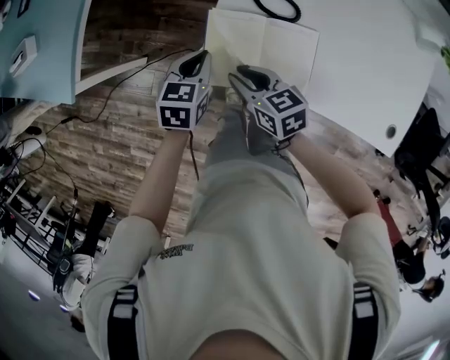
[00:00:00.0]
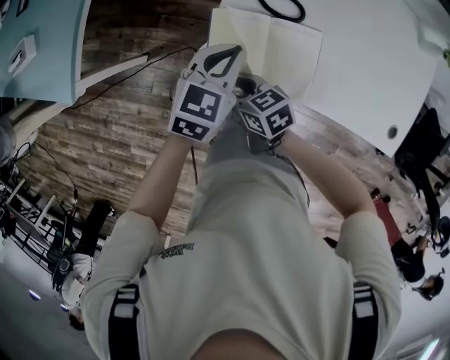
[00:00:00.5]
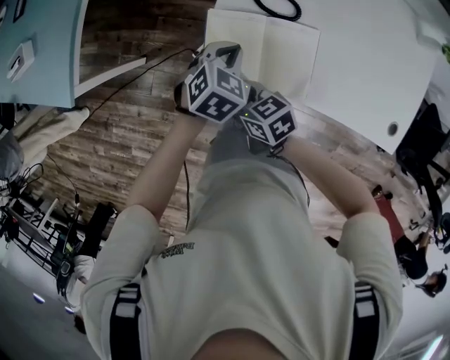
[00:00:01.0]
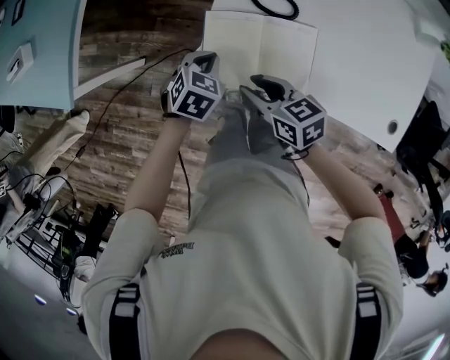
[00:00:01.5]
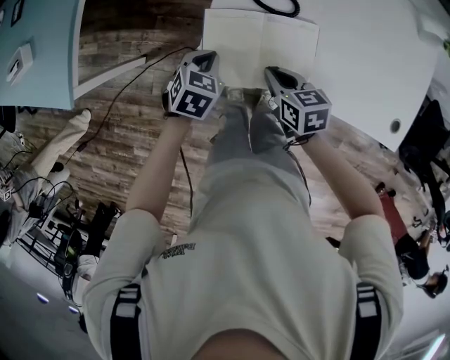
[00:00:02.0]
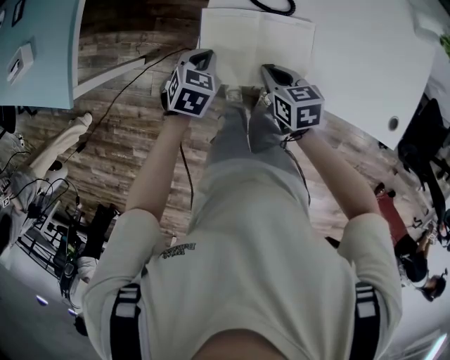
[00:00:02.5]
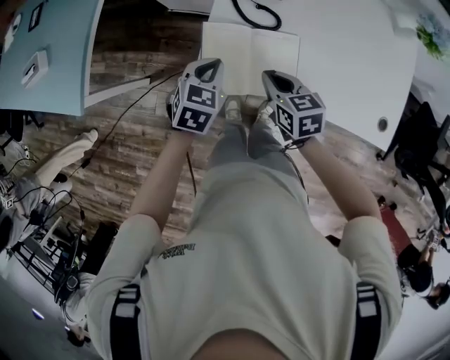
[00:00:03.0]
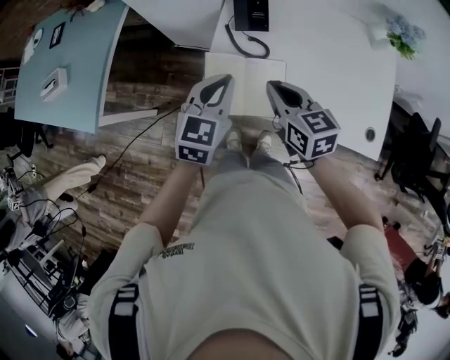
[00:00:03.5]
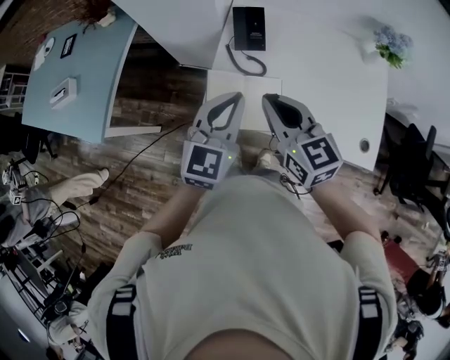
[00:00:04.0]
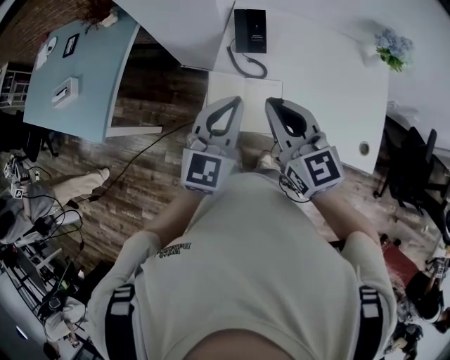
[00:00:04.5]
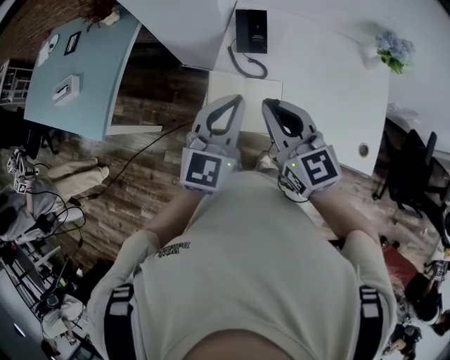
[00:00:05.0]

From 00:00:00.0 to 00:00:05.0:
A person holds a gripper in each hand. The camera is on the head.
From 00:00:00.0 to 00:00:02.5: The left gripper moves downward, roughly 5 cm, and changes its angle by roughly 20 degrees. The right gripper travels to the right by some 10 cm, and closes its fingers.
From 00:00:02.5 to 00:00:05.0: Both grippers travel together upward, roughly 35 cm. The right gripper tilts its fingers roughly 40 degrees upward. The left gripper tips its fingers upward by approximately 50 degrees.

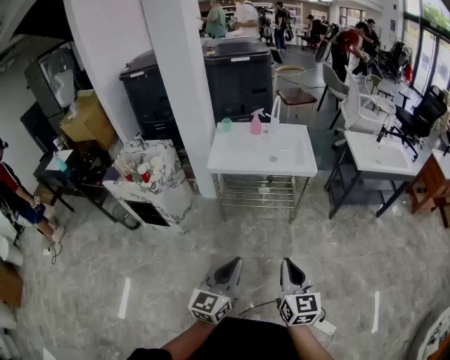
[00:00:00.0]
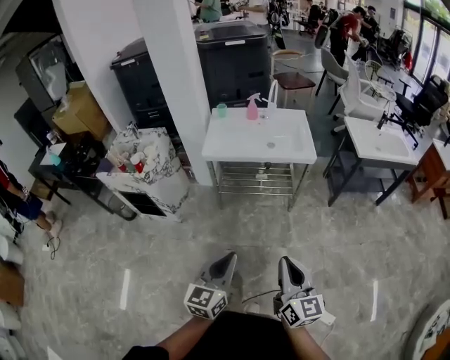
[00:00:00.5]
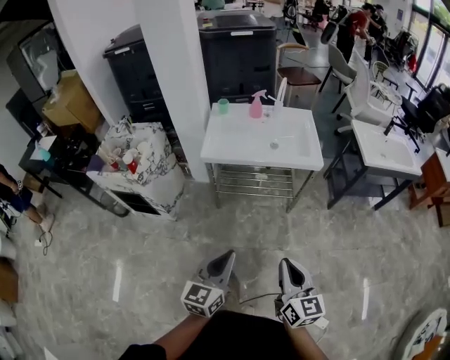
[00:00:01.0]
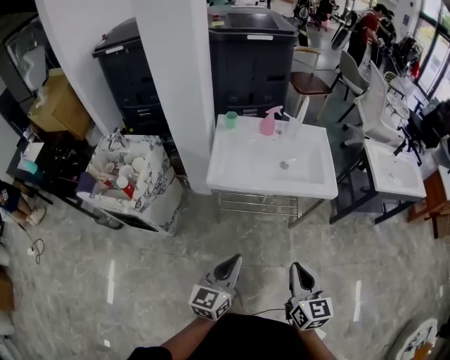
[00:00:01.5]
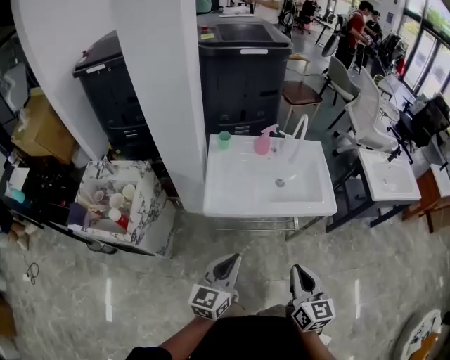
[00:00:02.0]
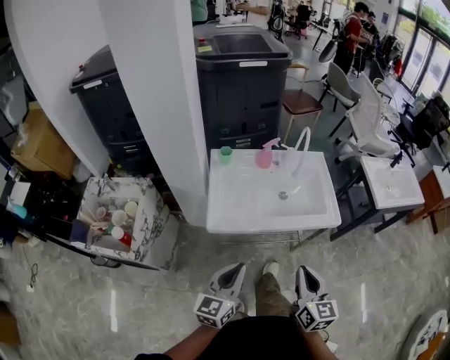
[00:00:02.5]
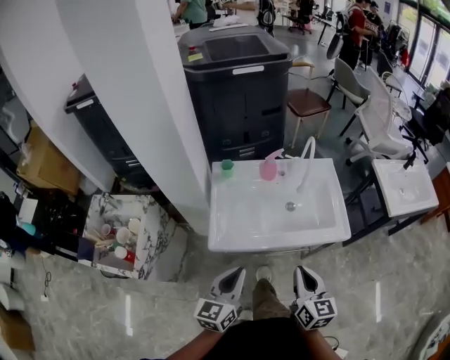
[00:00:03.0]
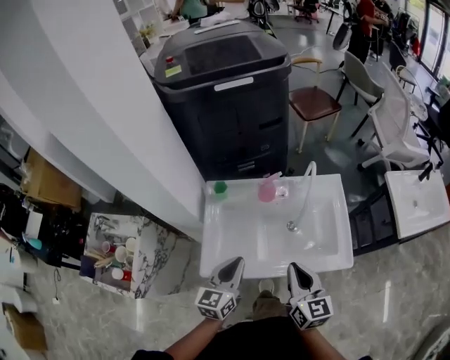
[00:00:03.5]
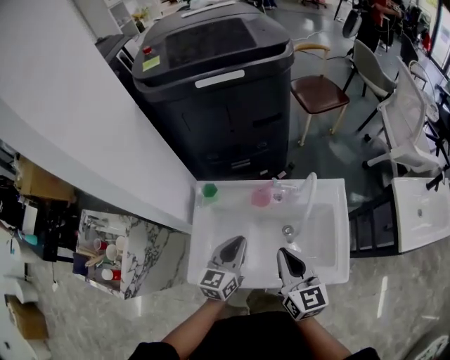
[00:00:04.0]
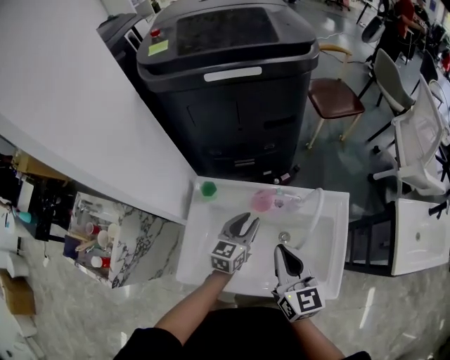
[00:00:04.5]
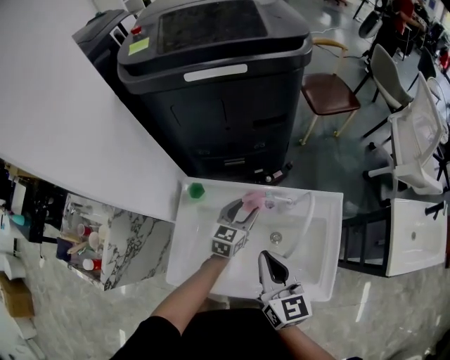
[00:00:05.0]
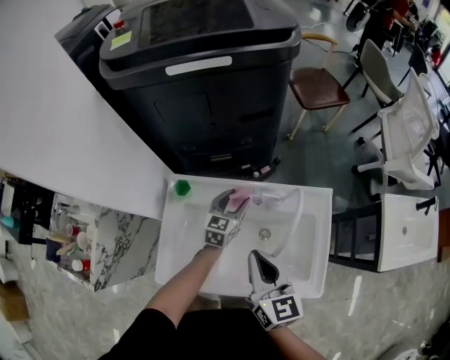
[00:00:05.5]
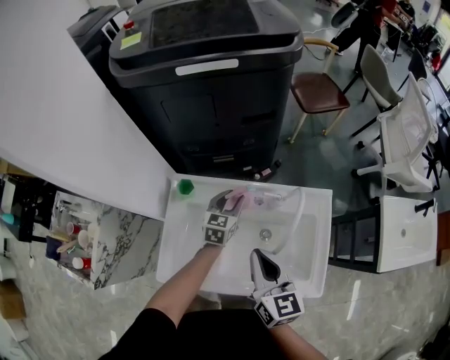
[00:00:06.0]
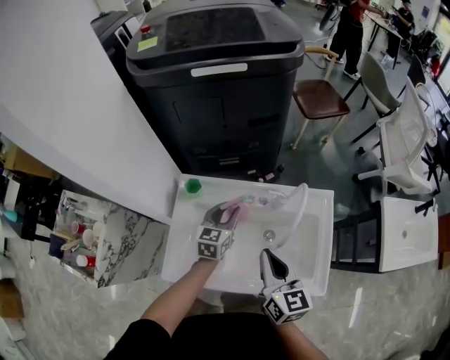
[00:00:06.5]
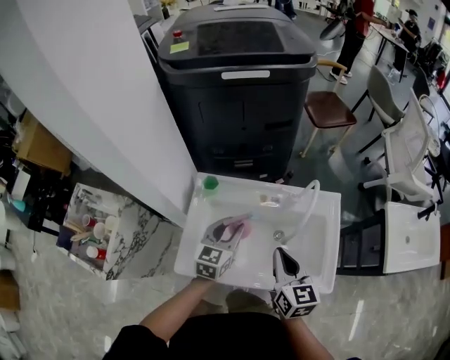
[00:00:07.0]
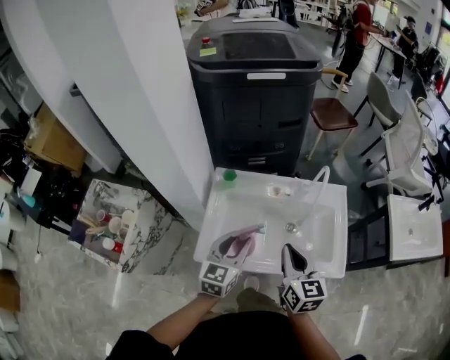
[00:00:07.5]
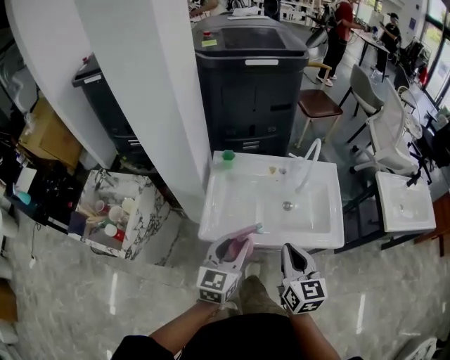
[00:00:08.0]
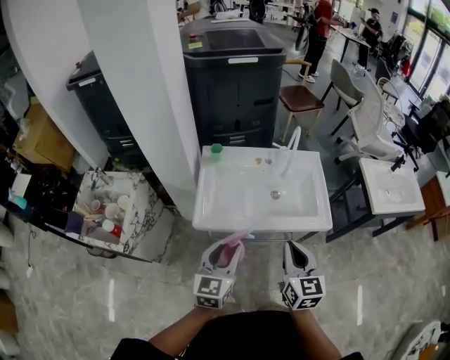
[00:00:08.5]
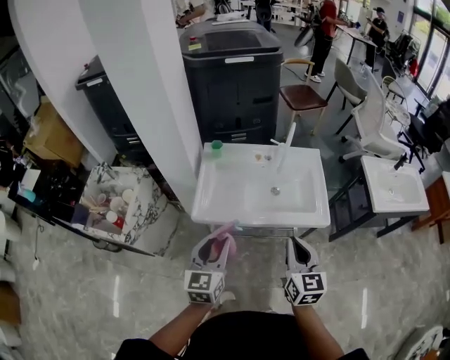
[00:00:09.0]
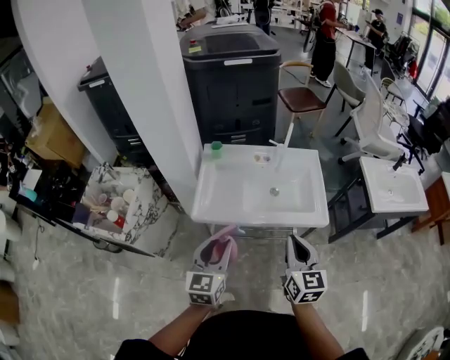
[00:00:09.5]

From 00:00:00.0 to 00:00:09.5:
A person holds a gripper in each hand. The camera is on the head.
From 00:00:00.0 to 00:00:02.0: Both grippers are carried forward and to the left, some 40 cm.
From 00:00:02.0 to 00:00:04.0: Both grippers are carried forward, about 50 cm.
From 00:00:04.0 to 00:00:05.5: The right gripper shifts some 5 cm forward; the left gripper is displaced forward and downward by some 25 cm, and opens.
From 00:00:05.5 to 00:00:07.5: The left gripper is displaced backward, upward and to the left by roughly 35 cm. Meanwhile the right gripper shifts approximately 15 cm backward.
From 00:00:07.5 to 00:00:09.5: Both grippers move backward, some 25 cm.

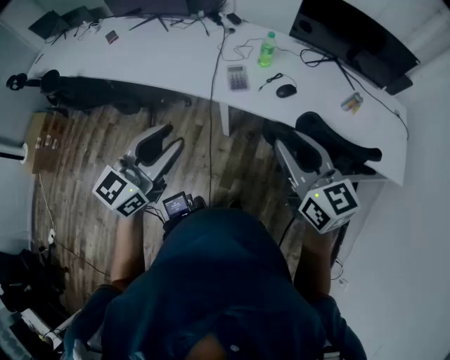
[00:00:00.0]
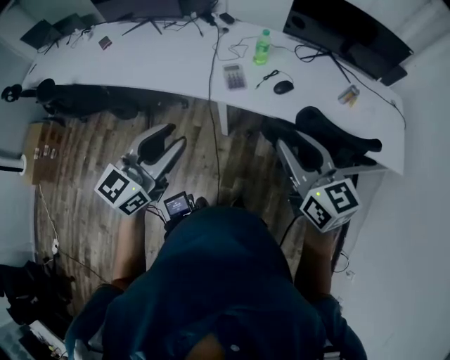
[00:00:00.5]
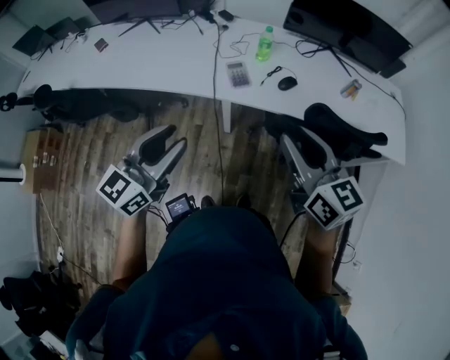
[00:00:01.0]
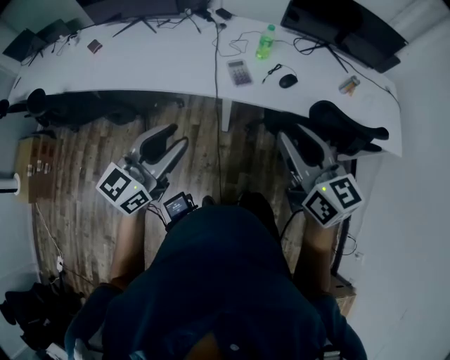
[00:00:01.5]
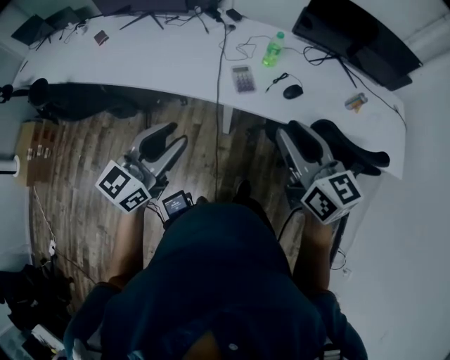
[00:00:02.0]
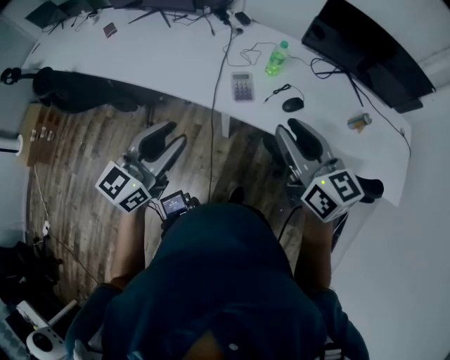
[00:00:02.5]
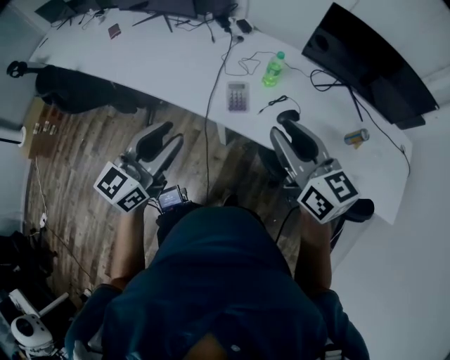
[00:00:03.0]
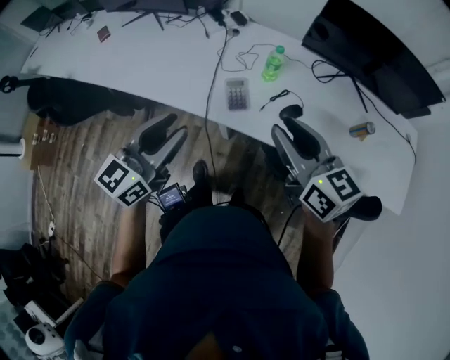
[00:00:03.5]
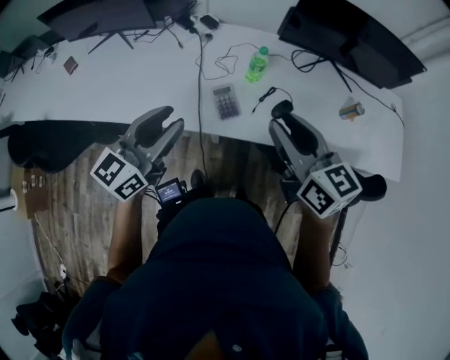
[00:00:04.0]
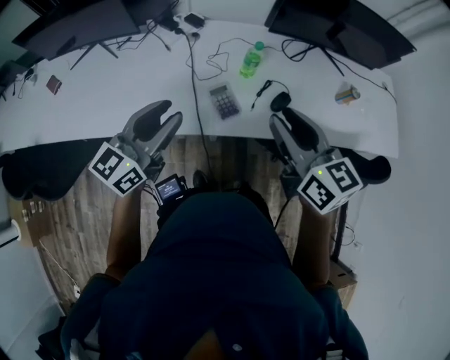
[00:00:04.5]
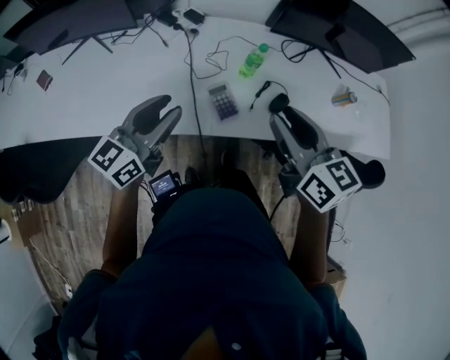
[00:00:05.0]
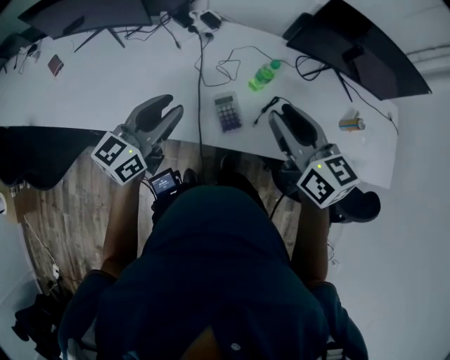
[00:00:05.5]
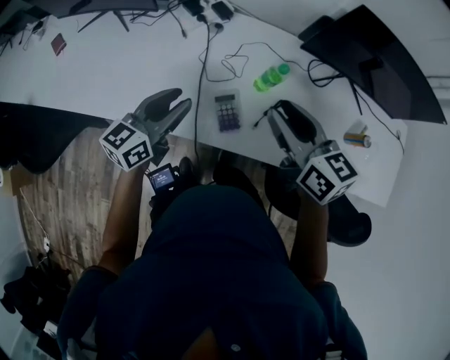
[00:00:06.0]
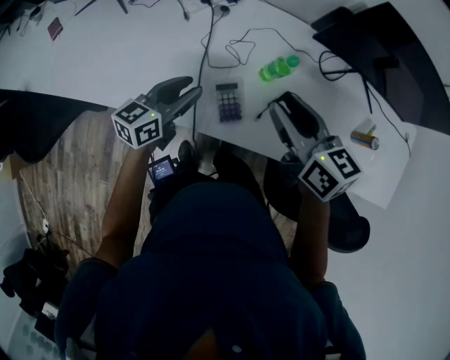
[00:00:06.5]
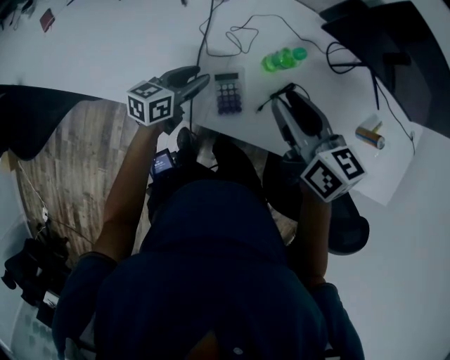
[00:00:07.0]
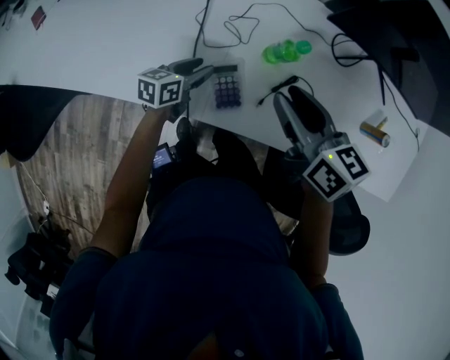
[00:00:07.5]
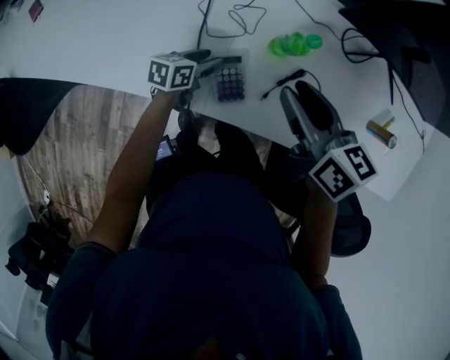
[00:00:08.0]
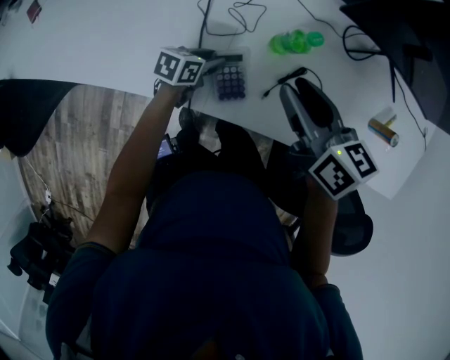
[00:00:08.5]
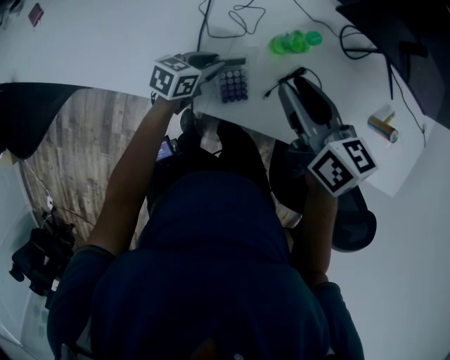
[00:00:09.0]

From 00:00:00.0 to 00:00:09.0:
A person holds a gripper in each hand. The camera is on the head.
From 00:00:00.0 to 00:00:02.0: The grippers both shift to the left by about 5 cm.
From 00:00:02.0 to 00:00:04.5: The two grippers go approximately 20 cm forward.
From 00:00:04.5 to 00:00:07.0: The left gripper heads downward and forward, covering roughly 30 cm, and turns by approximately 30 degrees. The right gripper is displaced forward and downward by about 20 cm, and changes its angle by roughly 20 degrees.
From 00:00:07.0 to 00:00:09.0: The left gripper heads downward, covering approximately 10 cm.

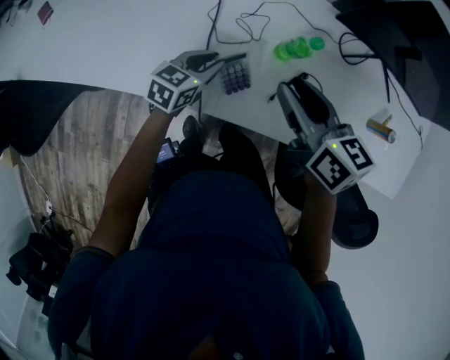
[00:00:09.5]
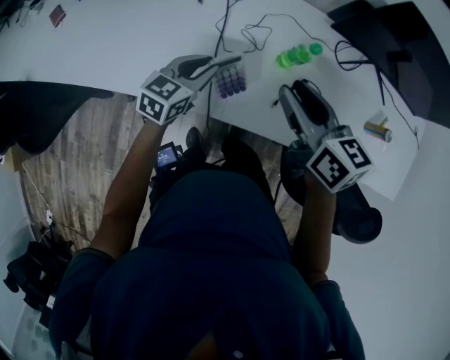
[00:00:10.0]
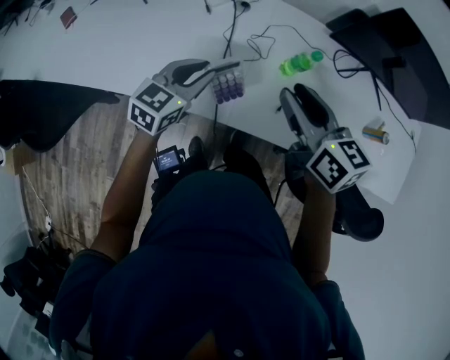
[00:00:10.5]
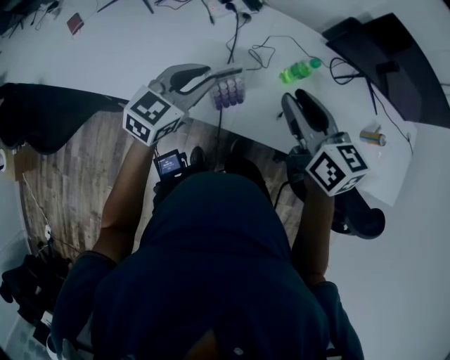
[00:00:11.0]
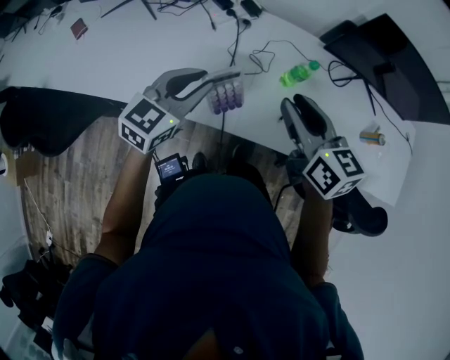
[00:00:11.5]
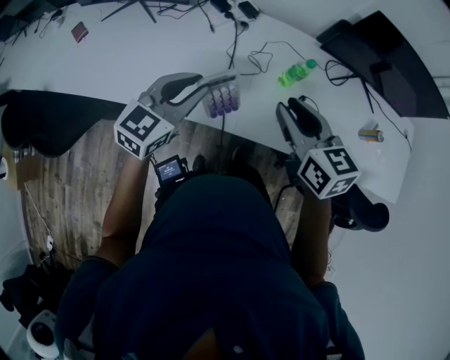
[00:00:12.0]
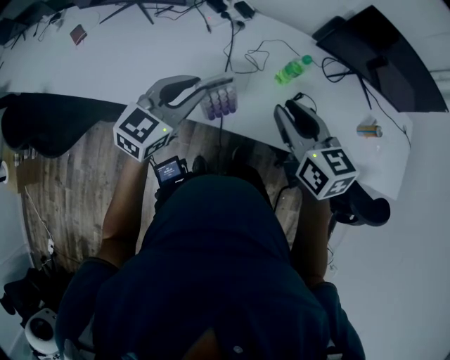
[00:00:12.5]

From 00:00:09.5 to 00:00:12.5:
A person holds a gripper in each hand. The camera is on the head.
From 00:00:09.5 to 00:00:11.0: The right gripper travels upward by about 10 cm. The left gripper goes roughly 20 cm upward and to the left, and swivels approximately 20 degrees.
From 00:00:11.0 to 00:00:12.5: The grippers both shift backward by some 5 cm.
